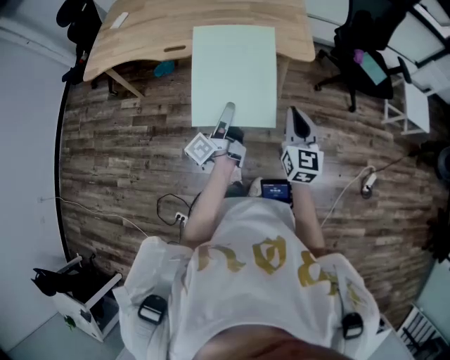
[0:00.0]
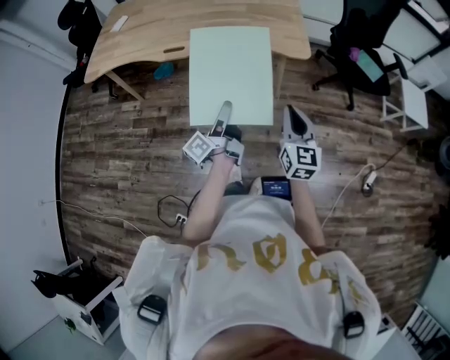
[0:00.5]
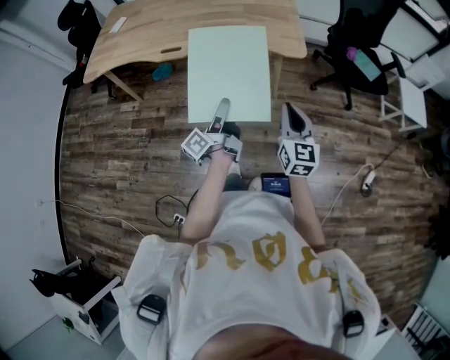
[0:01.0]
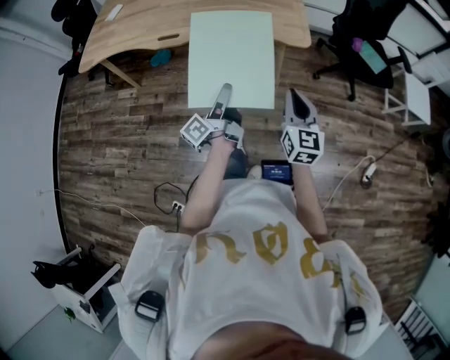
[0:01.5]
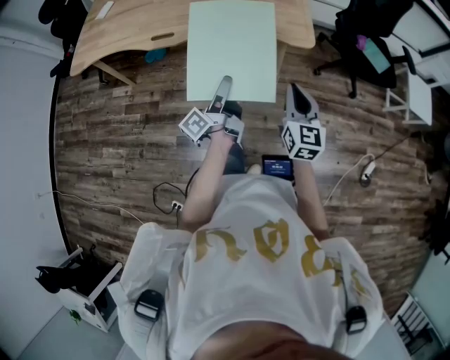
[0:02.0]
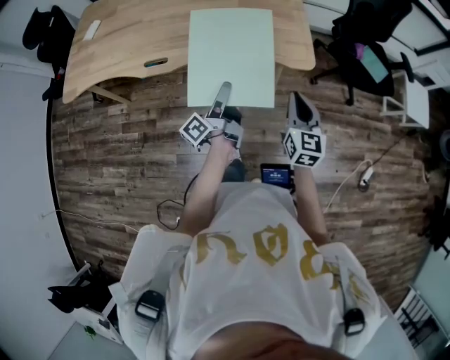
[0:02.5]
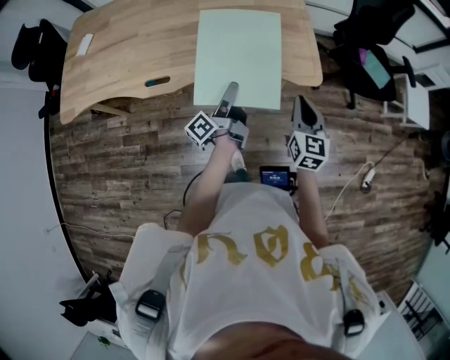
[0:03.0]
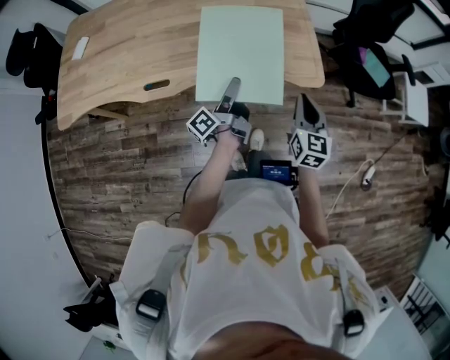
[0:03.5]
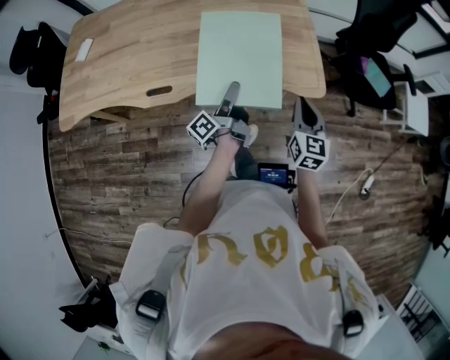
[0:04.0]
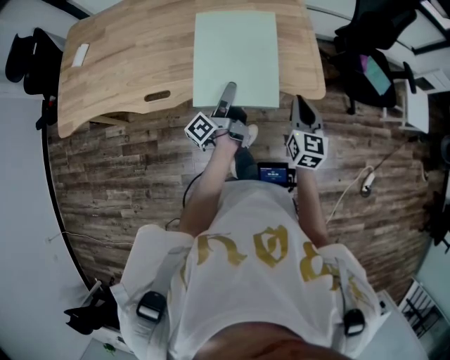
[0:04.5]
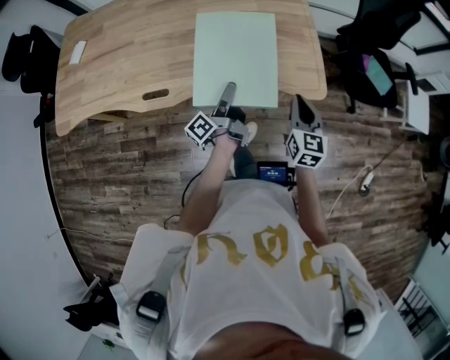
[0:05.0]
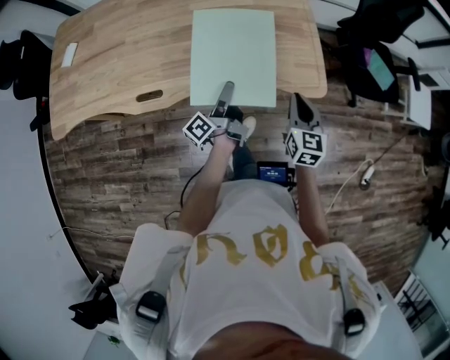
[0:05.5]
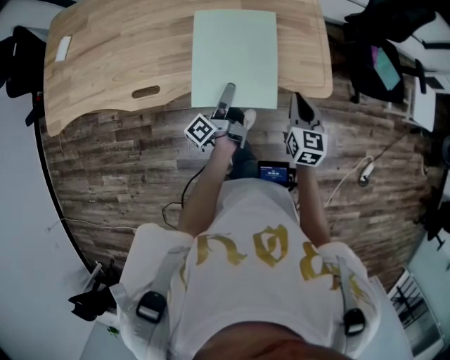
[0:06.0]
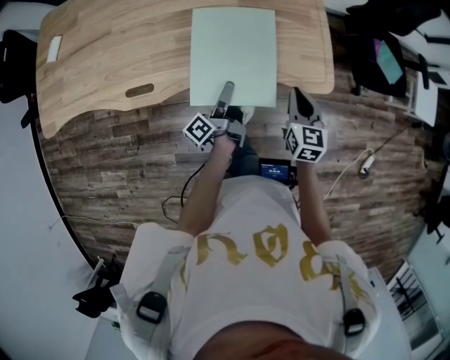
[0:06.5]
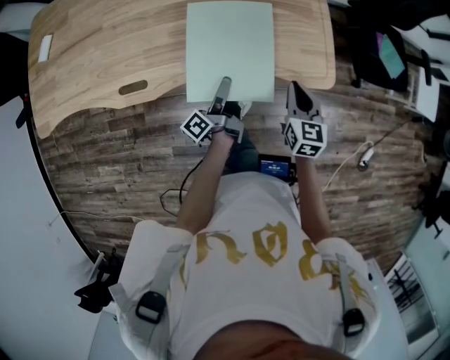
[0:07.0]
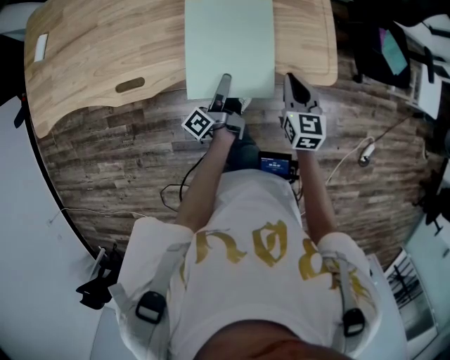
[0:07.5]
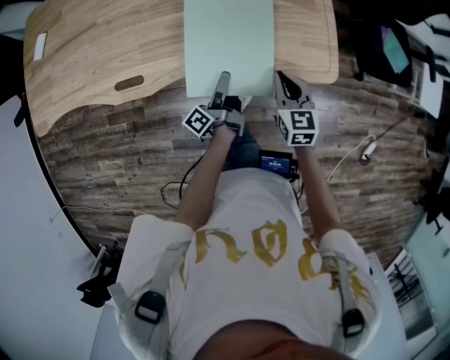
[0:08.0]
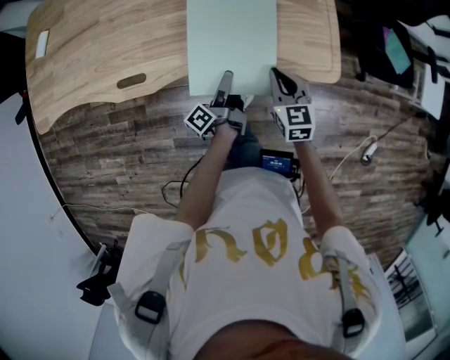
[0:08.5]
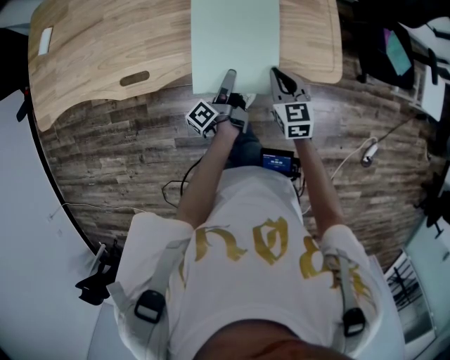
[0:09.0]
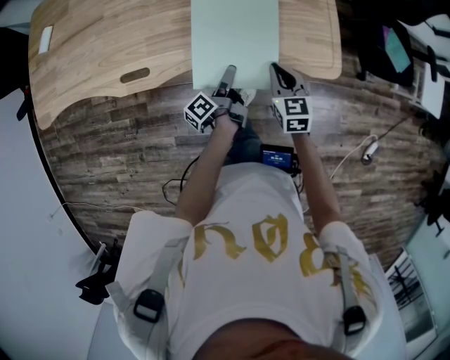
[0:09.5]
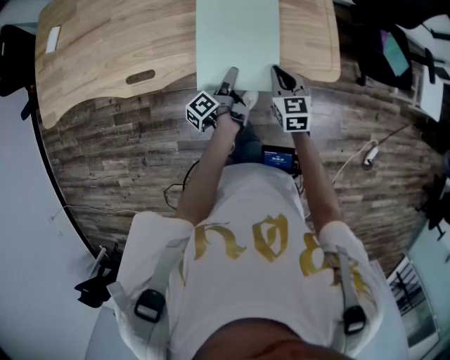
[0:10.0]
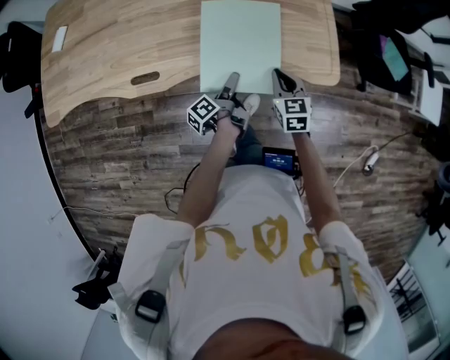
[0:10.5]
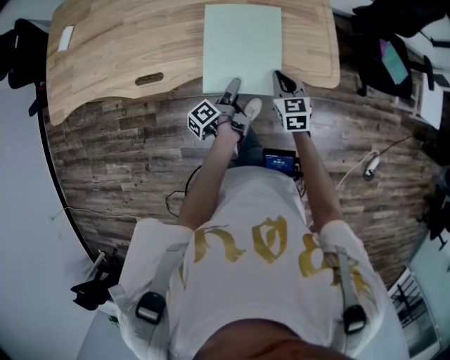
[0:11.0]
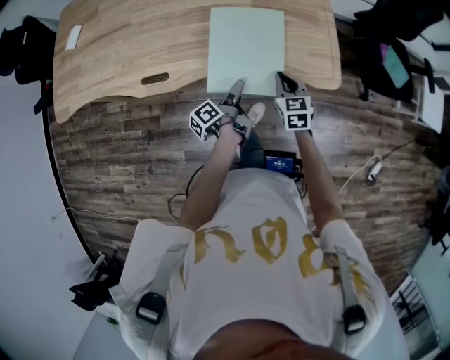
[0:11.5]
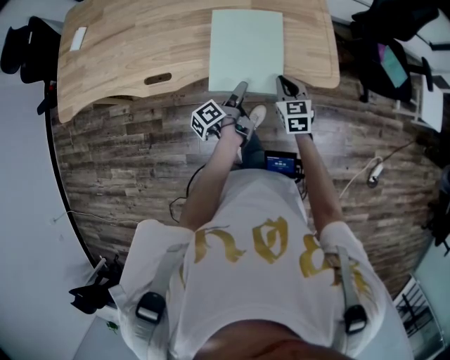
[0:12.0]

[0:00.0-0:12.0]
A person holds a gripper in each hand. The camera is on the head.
0:00.0 to 0:02.0: The right gripper changes place by about 10 cm.
0:02.0 to 0:04.0: The right gripper ends up some 25 cm from where it was.
0:04.0 to 0:06.0: The right gripper goes about 10 cm downward.
0:06.0 to 0:08.0: The right gripper travels downward by about 5 cm.

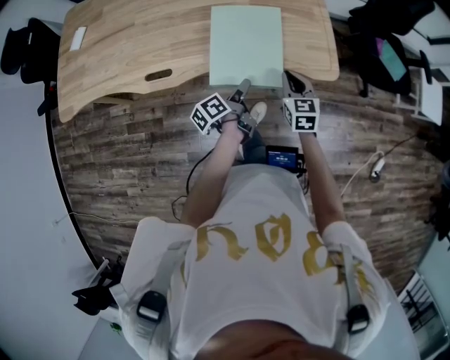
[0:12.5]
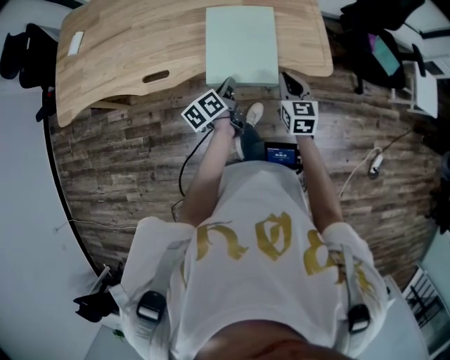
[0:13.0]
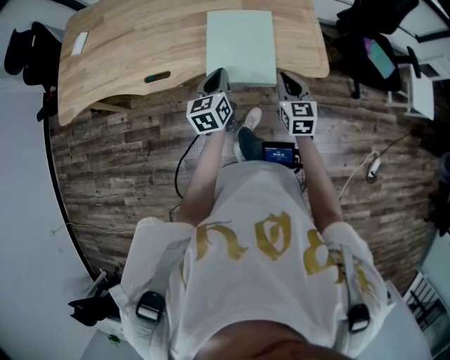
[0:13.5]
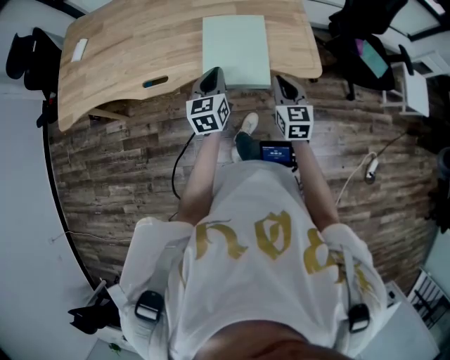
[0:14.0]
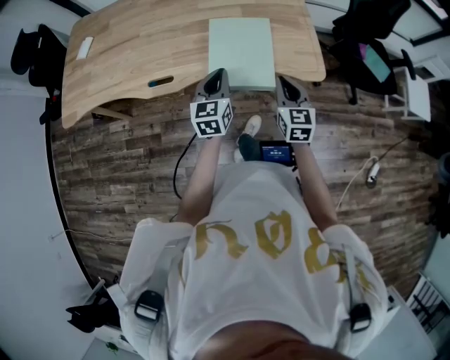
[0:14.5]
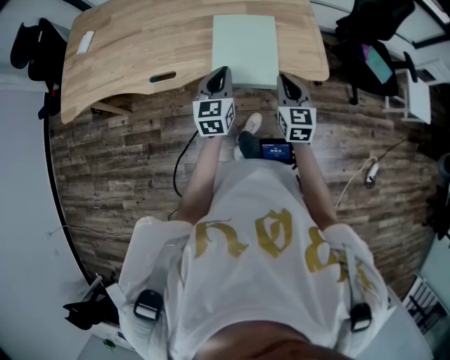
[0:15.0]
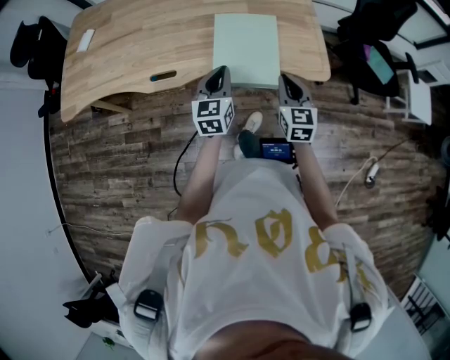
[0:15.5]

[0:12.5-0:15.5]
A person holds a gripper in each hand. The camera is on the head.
0:12.5 to 0:14.0: The right gripper moves upward, about 10 cm.

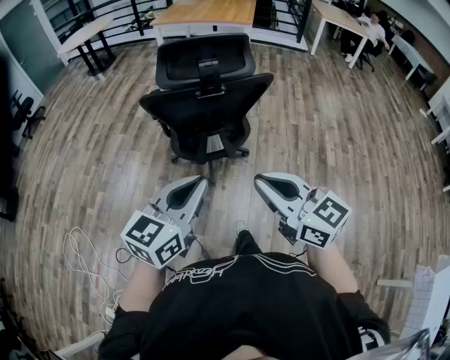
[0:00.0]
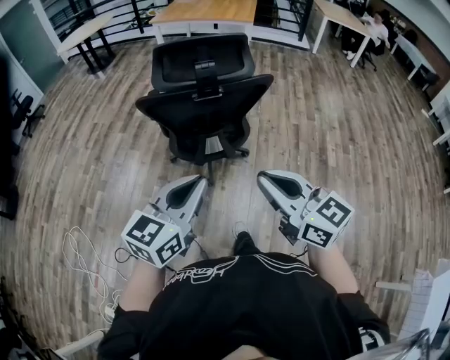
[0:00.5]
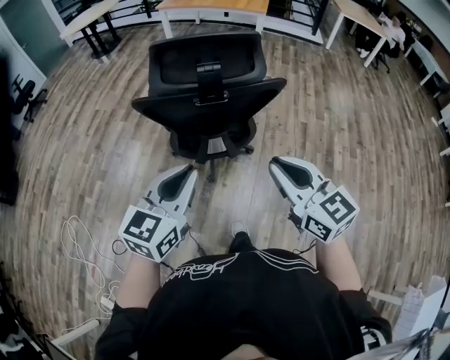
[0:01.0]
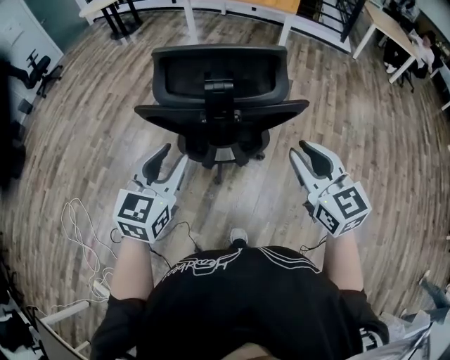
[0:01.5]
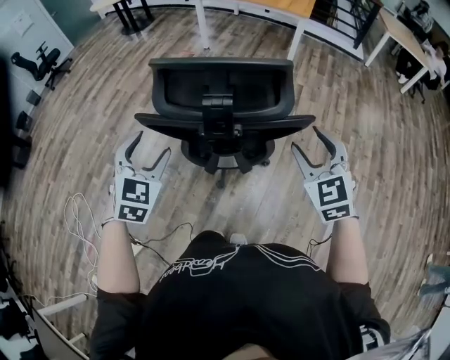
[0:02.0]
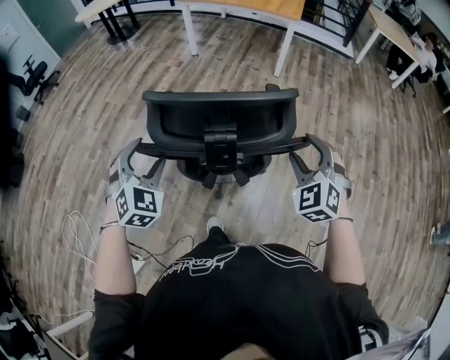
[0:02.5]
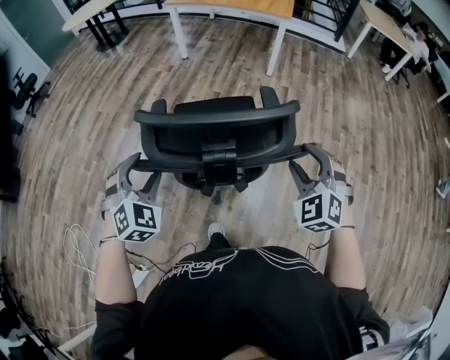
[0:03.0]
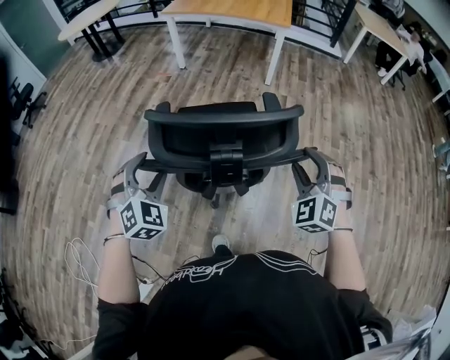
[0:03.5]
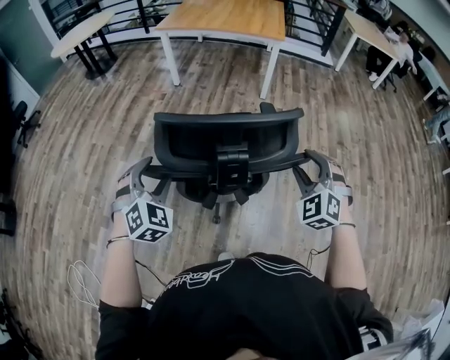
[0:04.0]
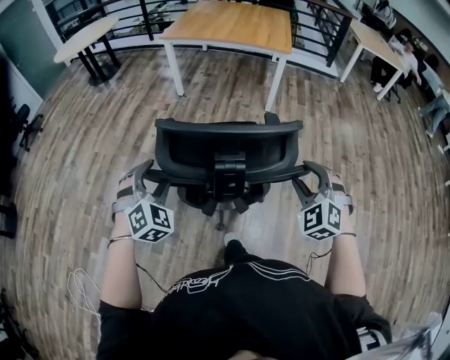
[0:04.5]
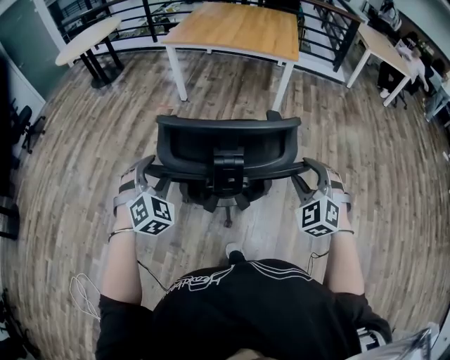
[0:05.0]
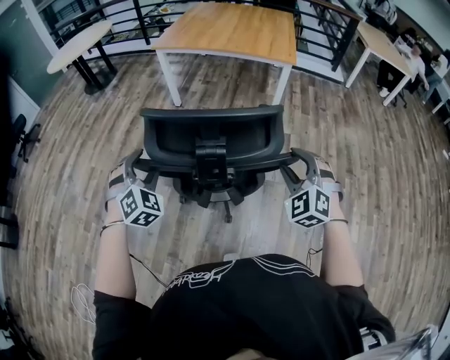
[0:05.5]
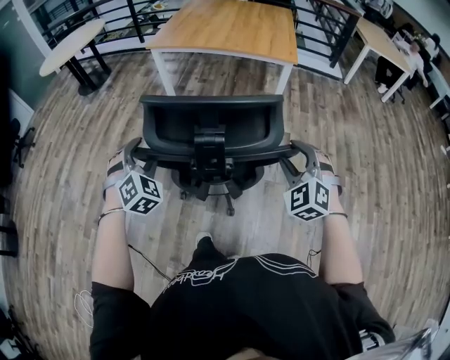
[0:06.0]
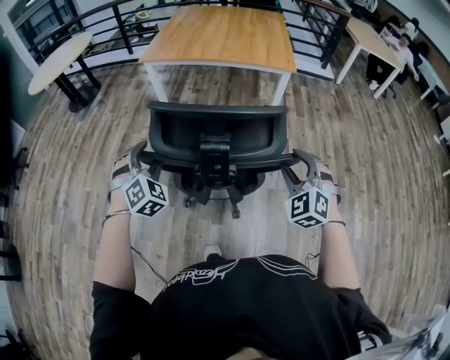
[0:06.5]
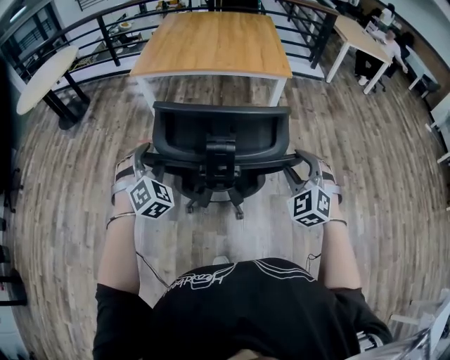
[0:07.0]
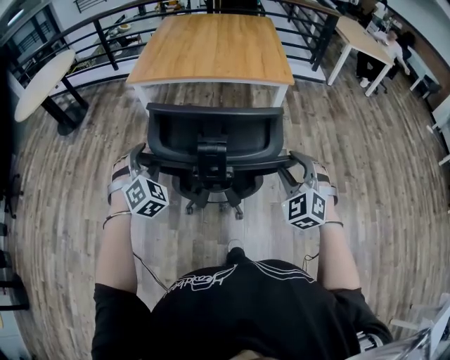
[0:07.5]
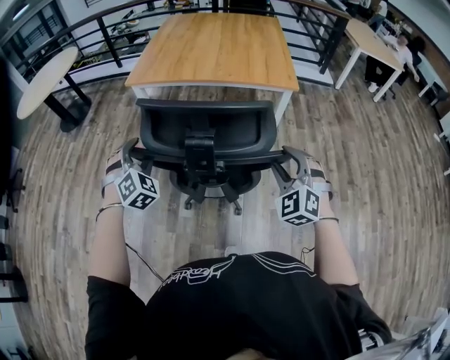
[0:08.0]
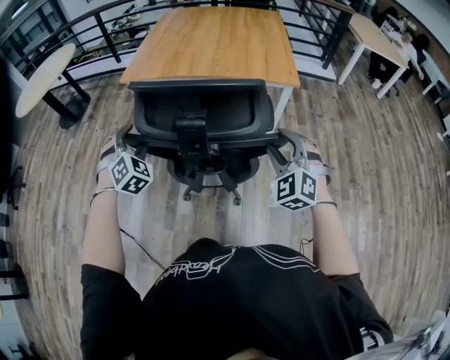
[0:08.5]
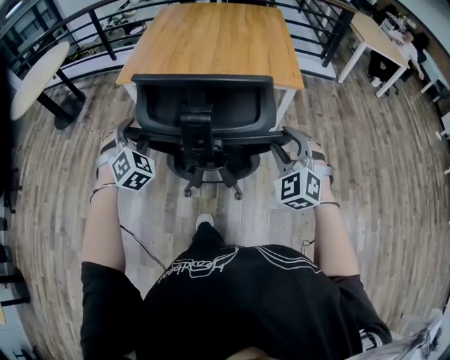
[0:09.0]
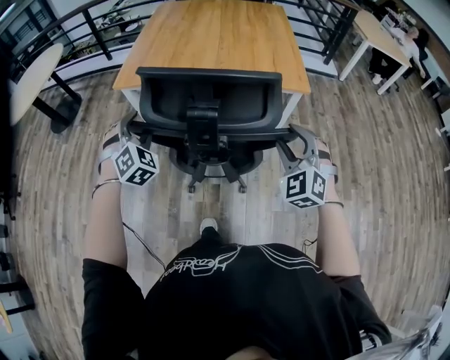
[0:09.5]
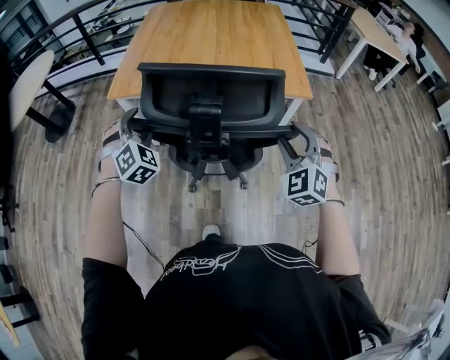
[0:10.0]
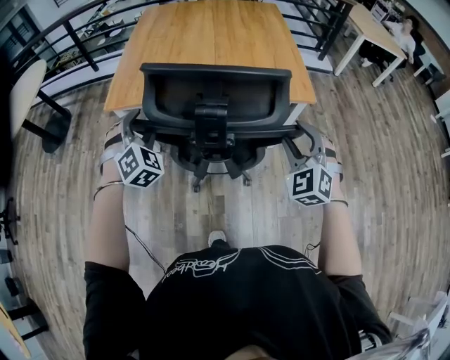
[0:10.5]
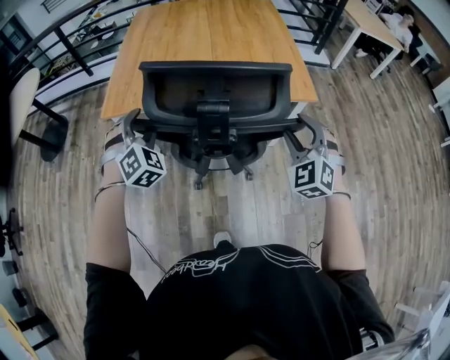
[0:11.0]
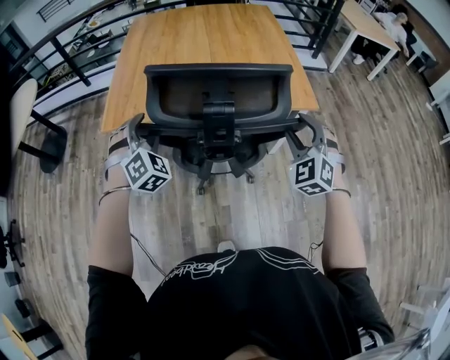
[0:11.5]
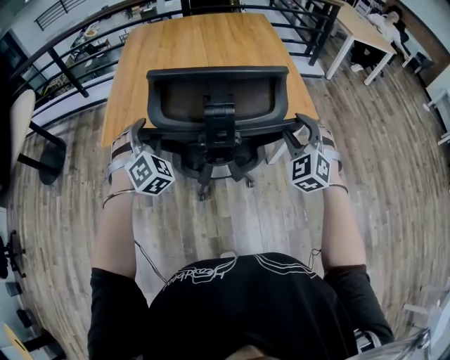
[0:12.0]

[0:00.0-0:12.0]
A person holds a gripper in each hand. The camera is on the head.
0:00.0 to 0:02.0: The right gripper moves forward and to the right, approximately 40 cm, turns by some 40 degrees, and opens. Meanwhile the left gripper shifts about 30 cm forward, rotates roughly 50 degrees, and opens.
0:02.0 to 0:04.0: Both grippers travel together forward, approximately 20 cm. The left gripper changes its angle by roughly 20 degrees. Meanwhile the right gripper rotates some 30 degrees.
0:04.0 to 0:06.0: Both grippers move forward, about 35 cm.
0:06.0 to 0:08.0: The grippers both shift forward by about 25 cm.
0:08.0 to 0:10.0: Both grippers move forward, about 25 cm.
0:10.0 to 0:12.0: Both grippers move forward, about 15 cm.
